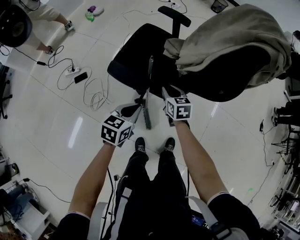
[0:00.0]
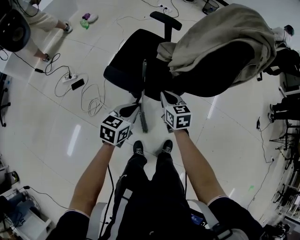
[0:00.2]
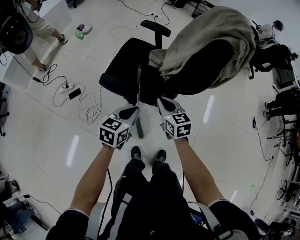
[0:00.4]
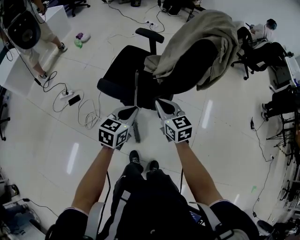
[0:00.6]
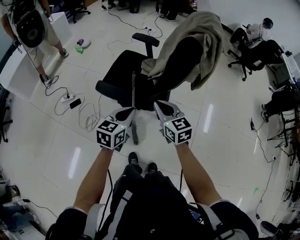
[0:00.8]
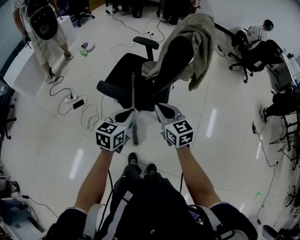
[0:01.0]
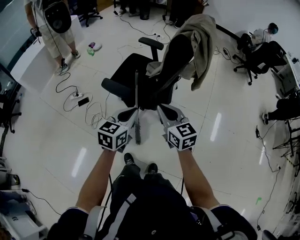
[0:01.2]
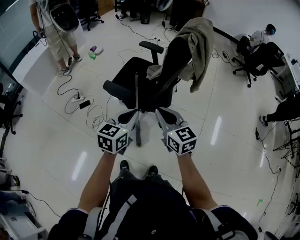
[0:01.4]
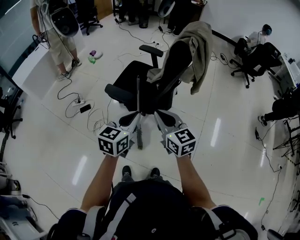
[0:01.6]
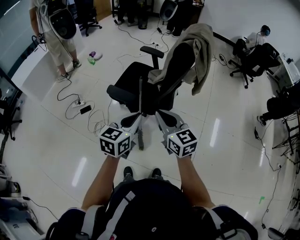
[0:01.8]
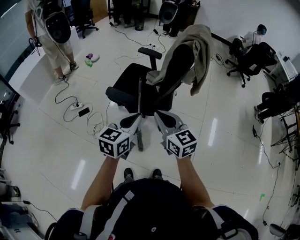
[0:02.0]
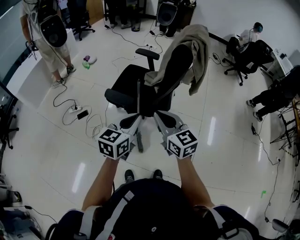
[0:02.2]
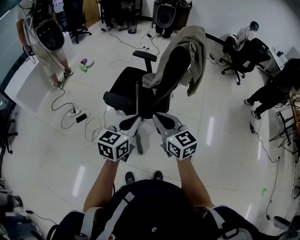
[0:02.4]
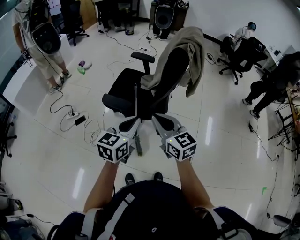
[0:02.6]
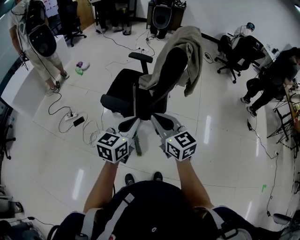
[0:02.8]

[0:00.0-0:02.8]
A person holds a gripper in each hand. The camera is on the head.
0:00.0 to 0:01.4: The left gripper goes approximately 25 cm upward, to the right and backward; the right gripper travels upward and backward by approximately 30 cm, changes its angle by about 30 degrees, and closes.
0:01.4 to 0:02.8: The left gripper ends up about 5 cm from where it was. The right gripper shifts approximately 5 cm to the left.

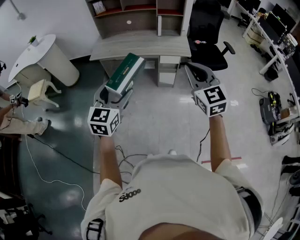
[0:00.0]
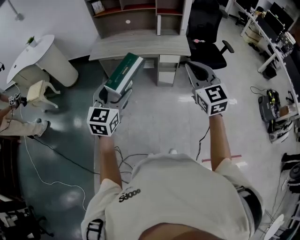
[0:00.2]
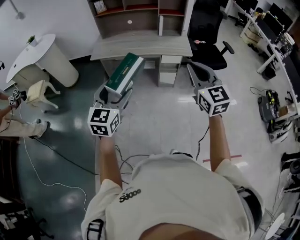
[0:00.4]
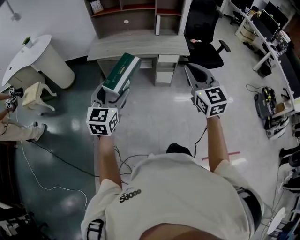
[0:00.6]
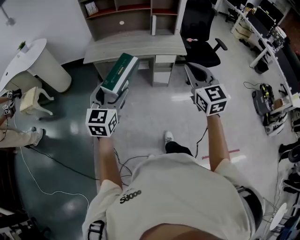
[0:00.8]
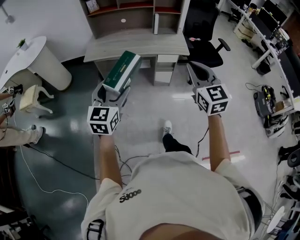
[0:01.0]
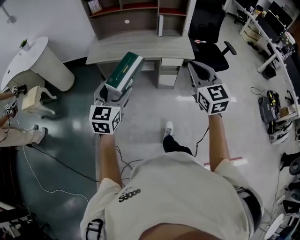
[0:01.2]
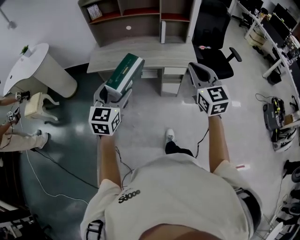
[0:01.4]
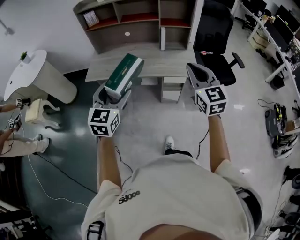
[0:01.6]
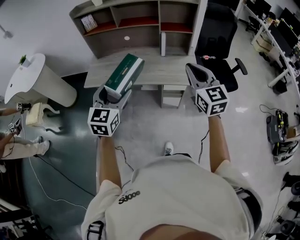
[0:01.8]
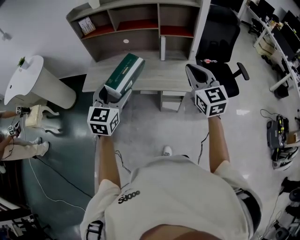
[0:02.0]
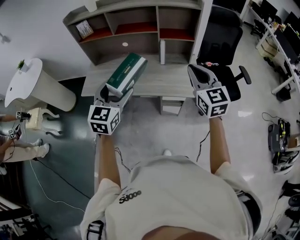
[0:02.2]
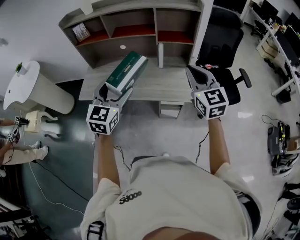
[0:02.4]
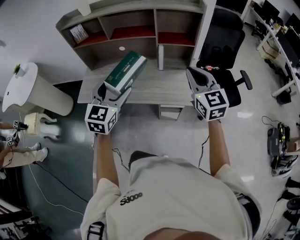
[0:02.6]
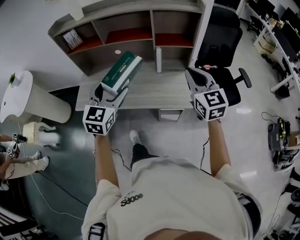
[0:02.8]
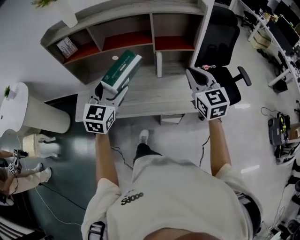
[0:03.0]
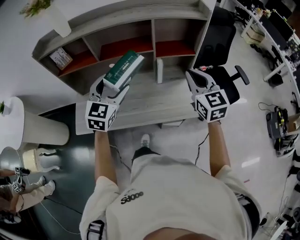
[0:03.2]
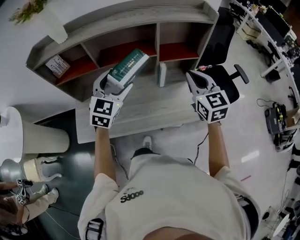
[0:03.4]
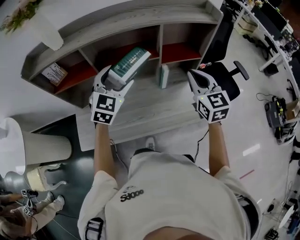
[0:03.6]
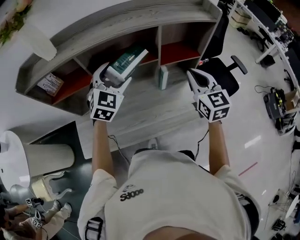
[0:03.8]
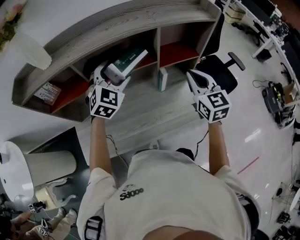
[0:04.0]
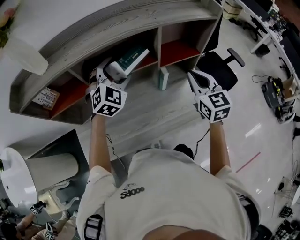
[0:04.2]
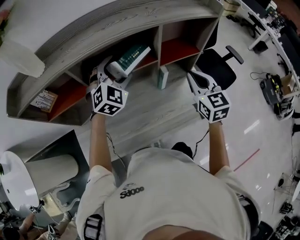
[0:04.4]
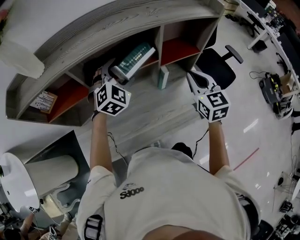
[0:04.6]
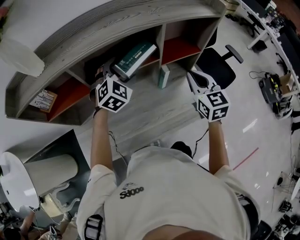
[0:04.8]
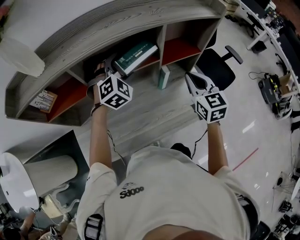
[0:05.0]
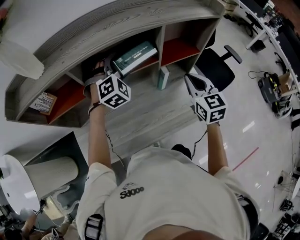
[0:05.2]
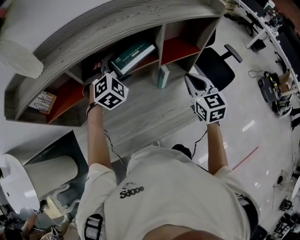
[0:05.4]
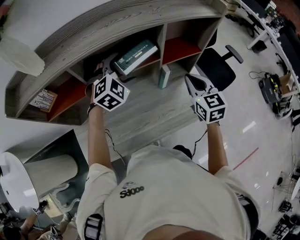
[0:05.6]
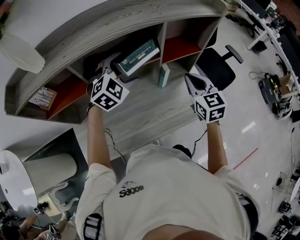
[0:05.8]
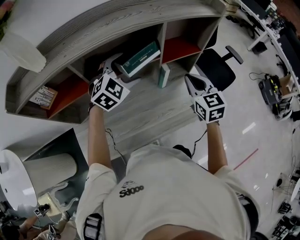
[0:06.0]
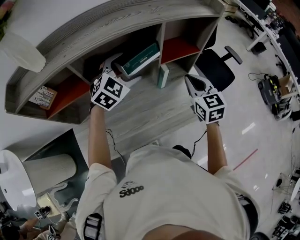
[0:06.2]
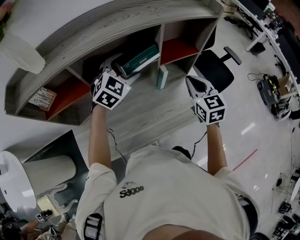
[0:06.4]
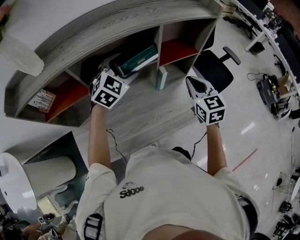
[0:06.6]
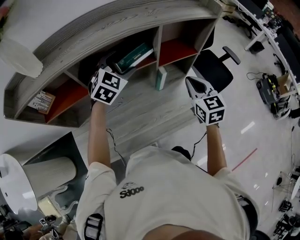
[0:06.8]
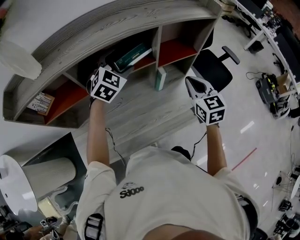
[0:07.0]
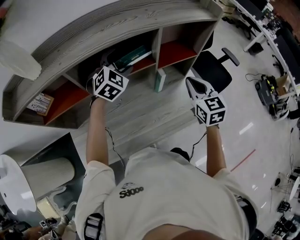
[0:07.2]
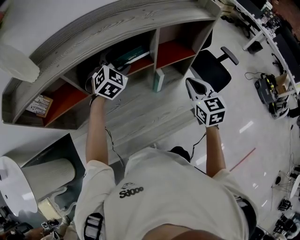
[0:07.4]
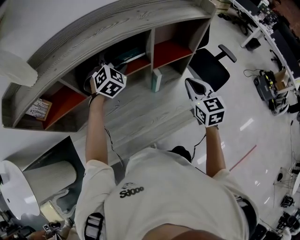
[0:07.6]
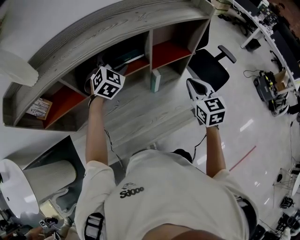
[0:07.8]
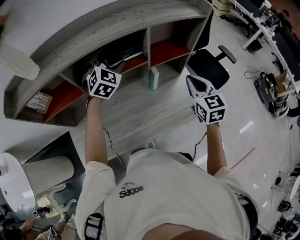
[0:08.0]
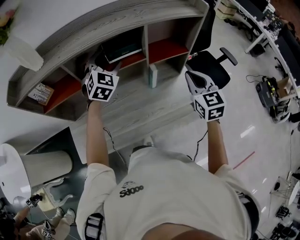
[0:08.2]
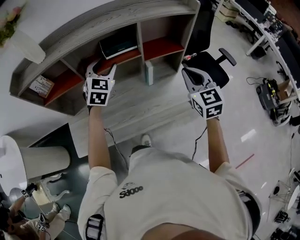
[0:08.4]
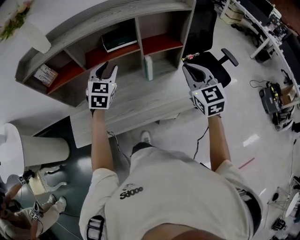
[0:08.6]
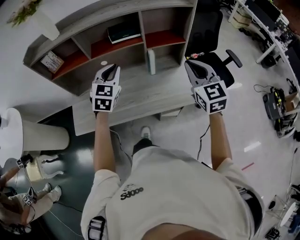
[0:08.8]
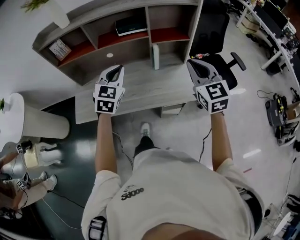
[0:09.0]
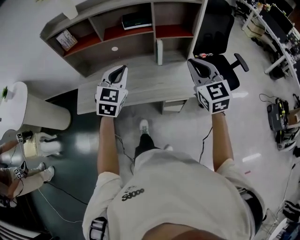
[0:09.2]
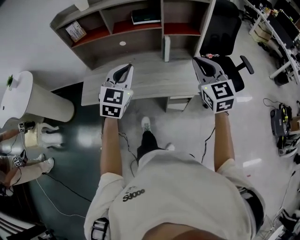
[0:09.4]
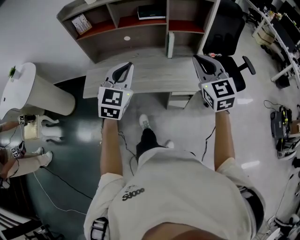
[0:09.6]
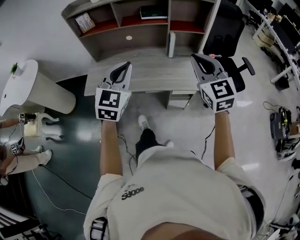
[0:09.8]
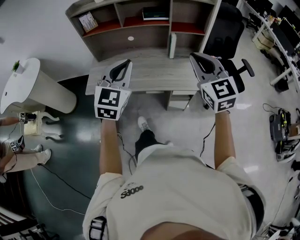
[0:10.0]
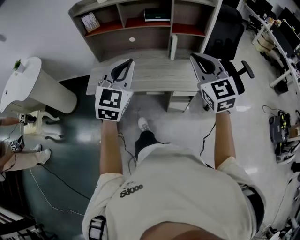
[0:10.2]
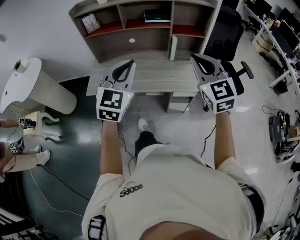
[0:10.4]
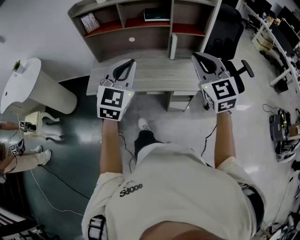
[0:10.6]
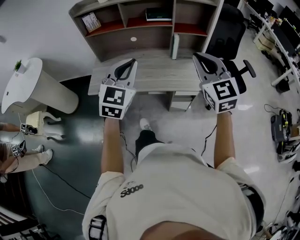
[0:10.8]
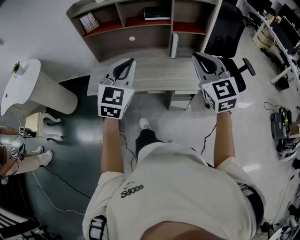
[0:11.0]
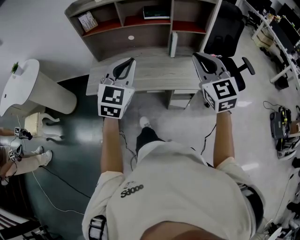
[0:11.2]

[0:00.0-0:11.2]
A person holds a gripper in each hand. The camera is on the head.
0:00.0 to 0:01.6: The grippers both shift forward by about 30 cm.
0:01.6 to 0:03.2: The two grippers travel together, forward, approximately 50 cm.
0:03.2 to 0:04.8: The right gripper heads forward, to the left and downward, covering approximately 15 cm, while the left gripper travels forward by some 25 cm, and rotates roughly 40 degrees.
0:04.8 to 0:06.4: The grippers make only small movements.
0:06.4 to 0:08.0: The right gripper moves approximately 5 cm; the left gripper travels forward by approximately 5 cm.
0:08.0 to 0:09.6: The left gripper travels backward by roughly 50 cm, changes its angle by some 30 degrees, and closes its fingers, while the right gripper moves backward and upward, about 30 cm, and rotates about 30 degrees.
0:09.6 to 0:11.2: The left gripper shifts by about 5 cm. Meanwhile the right gripper moves some 5 cm.

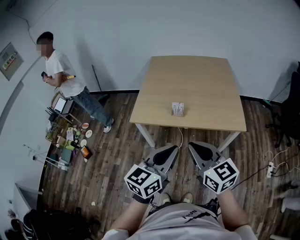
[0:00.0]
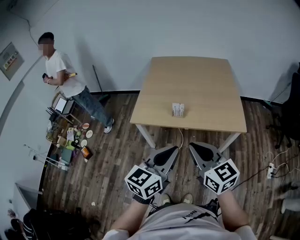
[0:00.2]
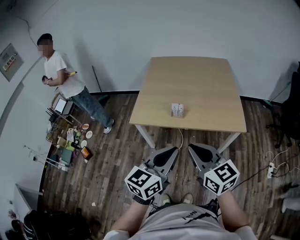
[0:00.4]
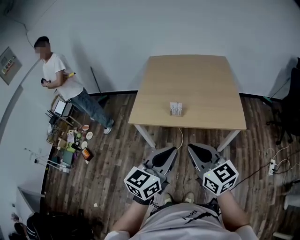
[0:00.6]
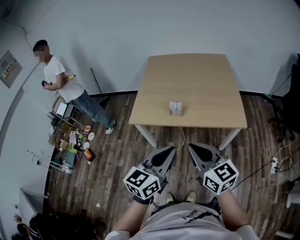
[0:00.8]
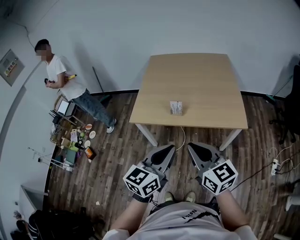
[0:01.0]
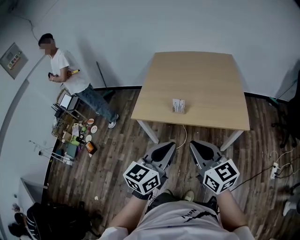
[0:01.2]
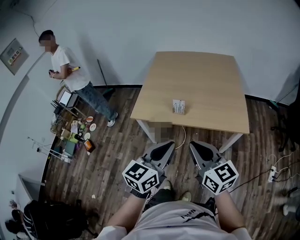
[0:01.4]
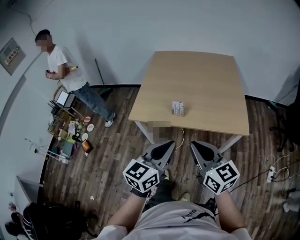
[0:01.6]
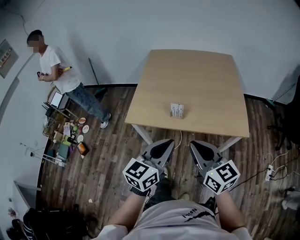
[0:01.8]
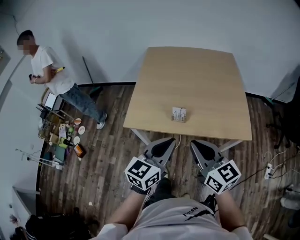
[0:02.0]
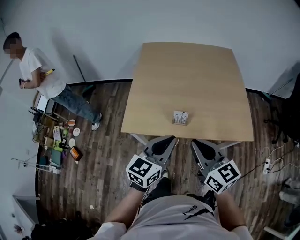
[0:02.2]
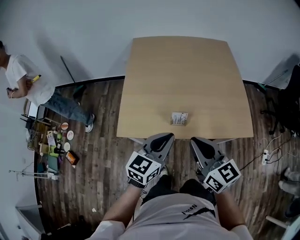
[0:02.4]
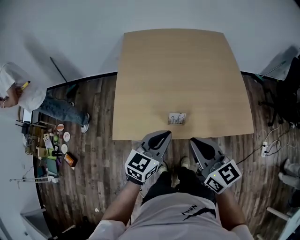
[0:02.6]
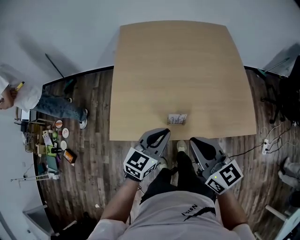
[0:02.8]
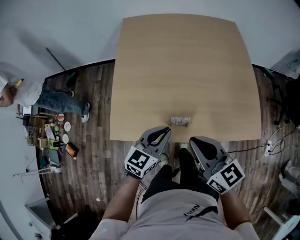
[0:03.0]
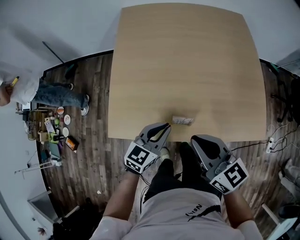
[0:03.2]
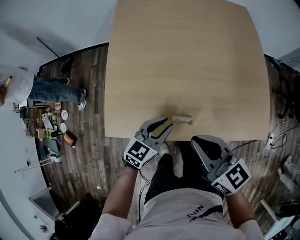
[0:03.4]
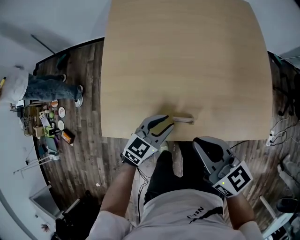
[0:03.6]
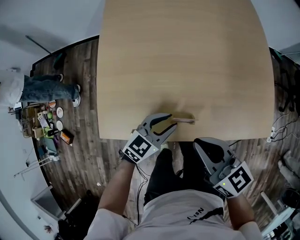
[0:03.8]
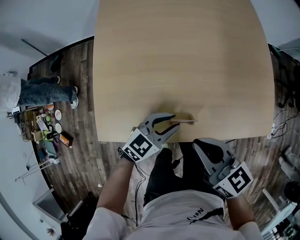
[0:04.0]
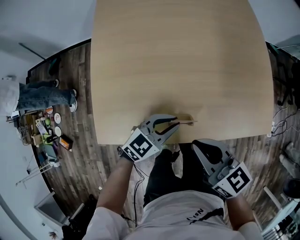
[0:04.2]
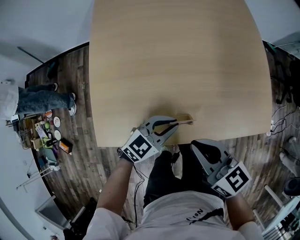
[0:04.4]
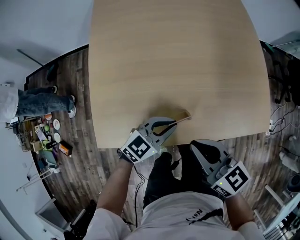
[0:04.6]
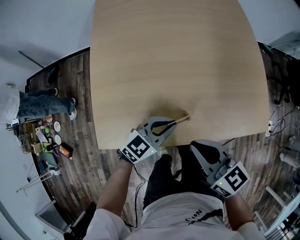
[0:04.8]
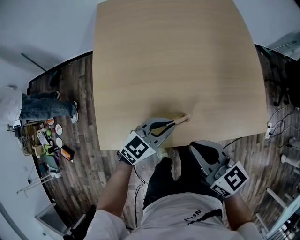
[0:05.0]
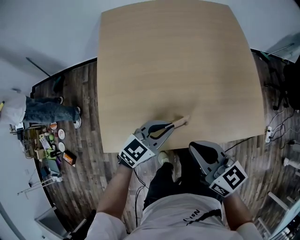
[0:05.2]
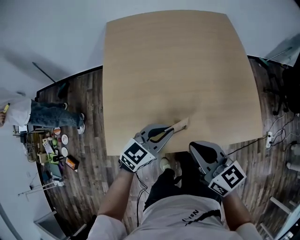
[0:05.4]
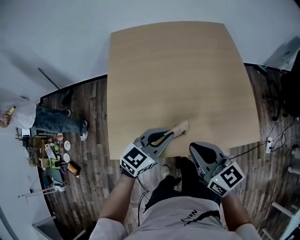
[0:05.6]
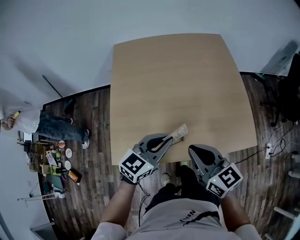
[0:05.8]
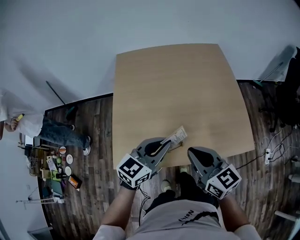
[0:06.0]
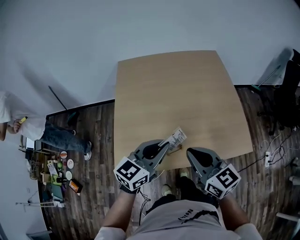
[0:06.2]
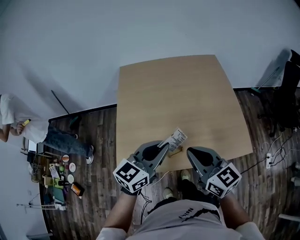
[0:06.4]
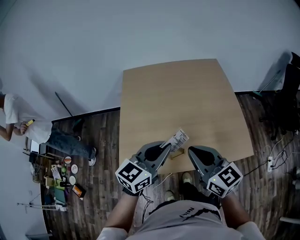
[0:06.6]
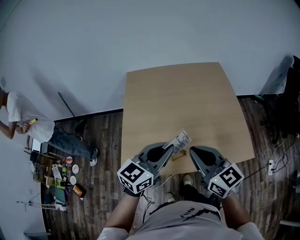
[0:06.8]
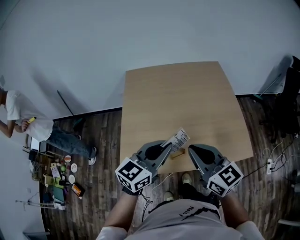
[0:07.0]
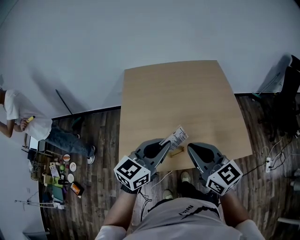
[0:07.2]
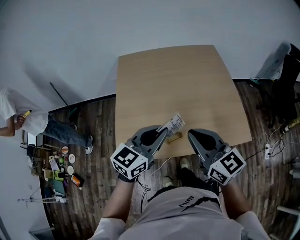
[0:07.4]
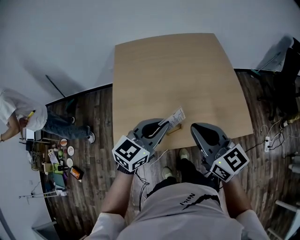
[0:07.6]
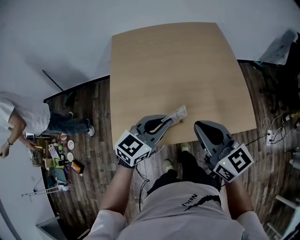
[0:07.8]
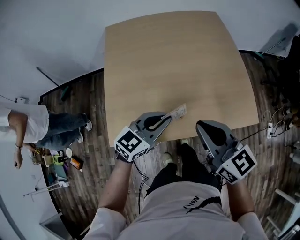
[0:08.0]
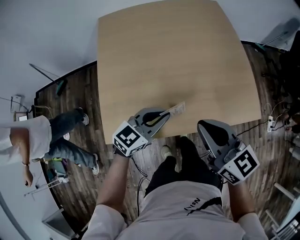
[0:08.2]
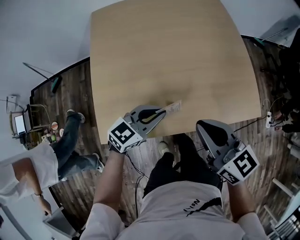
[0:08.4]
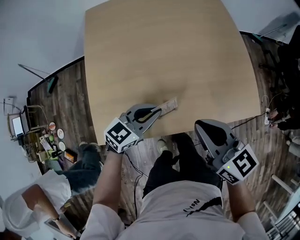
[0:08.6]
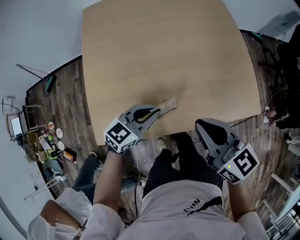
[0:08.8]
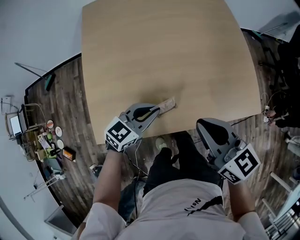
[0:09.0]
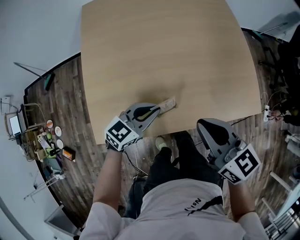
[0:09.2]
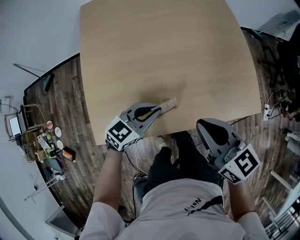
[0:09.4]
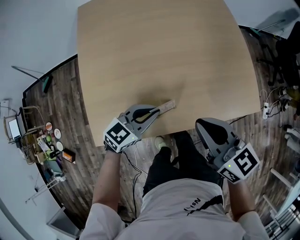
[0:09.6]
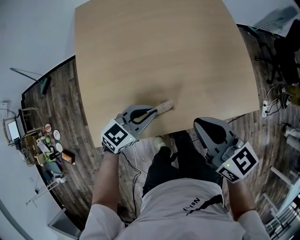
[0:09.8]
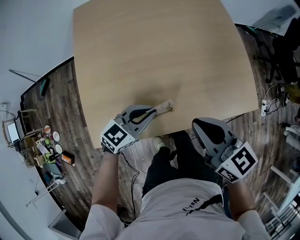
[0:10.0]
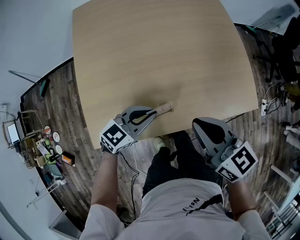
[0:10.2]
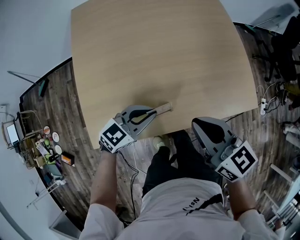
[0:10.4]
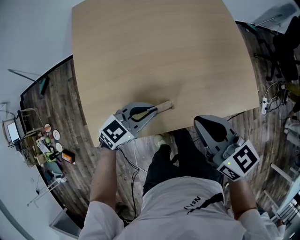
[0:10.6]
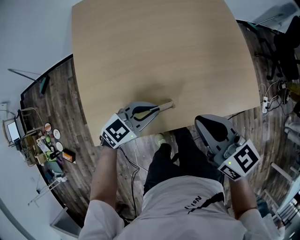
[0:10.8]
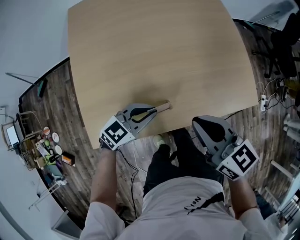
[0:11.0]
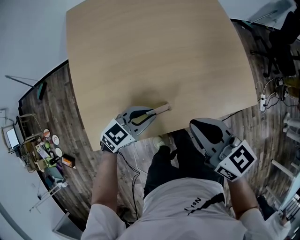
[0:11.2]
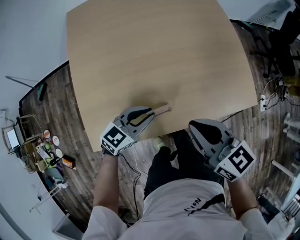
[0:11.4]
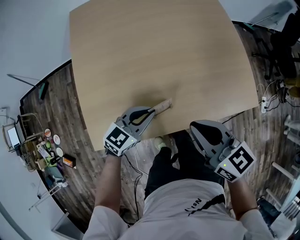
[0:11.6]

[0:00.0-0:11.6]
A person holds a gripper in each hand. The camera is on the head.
0:00.0 to 0:01.4: The grippers move only a little.
0:01.4 to 0:02.8: The left gripper moves forward and downward, some 35 cm. The right gripper shifts some 30 cm forward.
0:02.8 to 0:04.4: The two grippers go some 15 cm downward and forward. The left gripper swivels some 30 degrees.
0:04.4 to 0:05.8: The left gripper goes about 20 cm upward. Meanwhile the right gripper moves upward, some 10 cm.
0:05.8 to 0:07.2: Both grippers move upward, some 10 cm.
0:07.2 to 0:08.8: The left gripper travels downward by roughly 25 cm, and changes its angle by roughly 20 degrees; the right gripper goes about 15 cm downward.
0:08.8 to 0:11.6: The grippers make only small movements.
